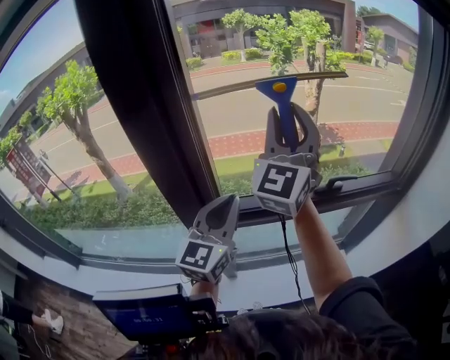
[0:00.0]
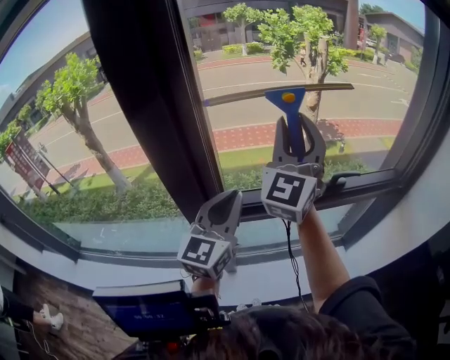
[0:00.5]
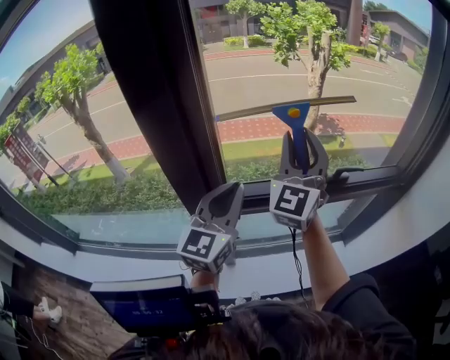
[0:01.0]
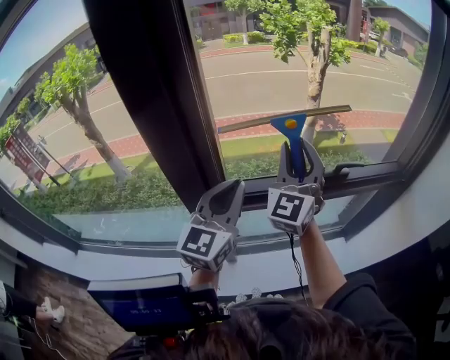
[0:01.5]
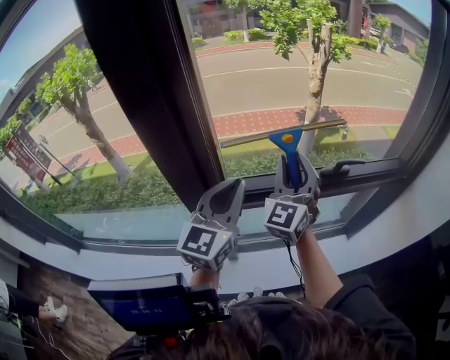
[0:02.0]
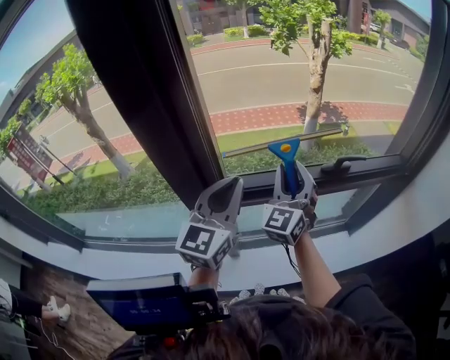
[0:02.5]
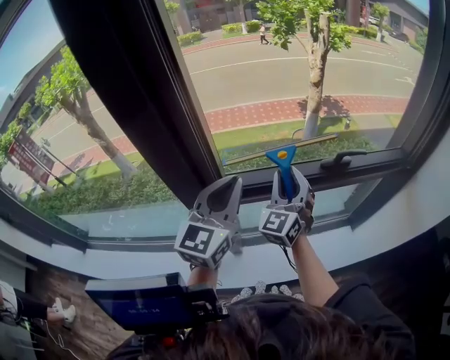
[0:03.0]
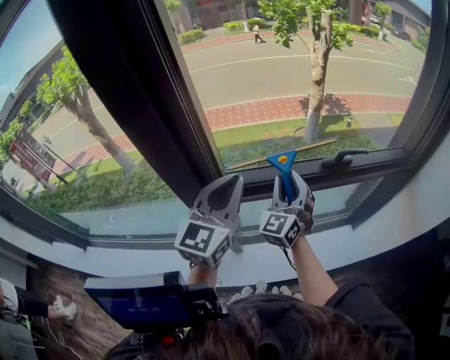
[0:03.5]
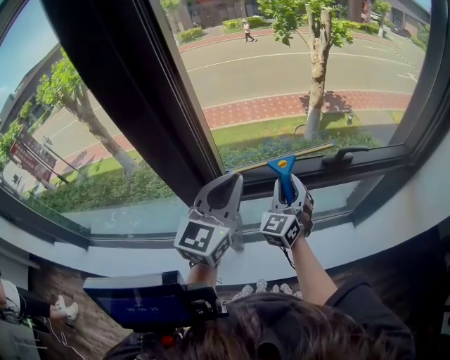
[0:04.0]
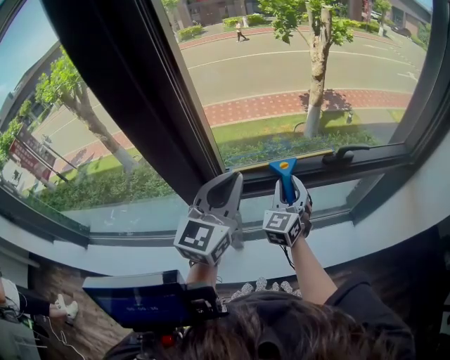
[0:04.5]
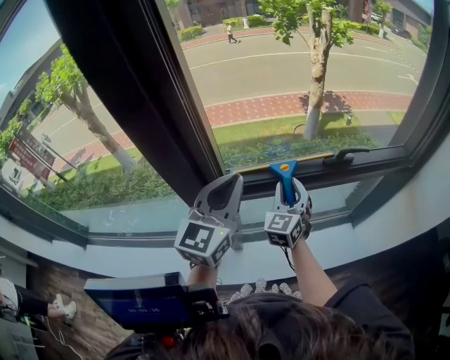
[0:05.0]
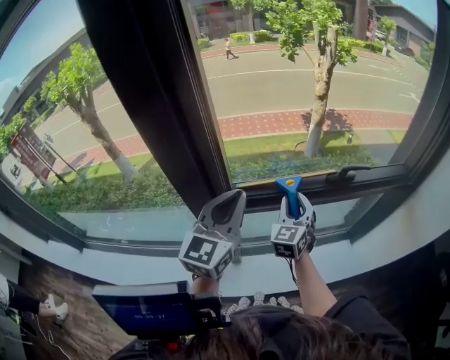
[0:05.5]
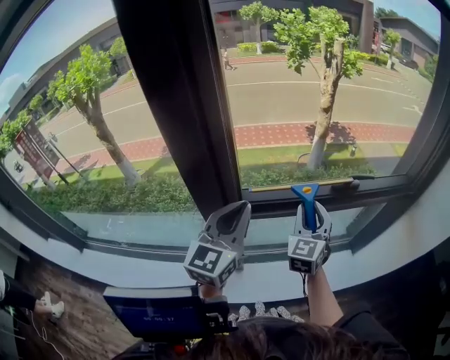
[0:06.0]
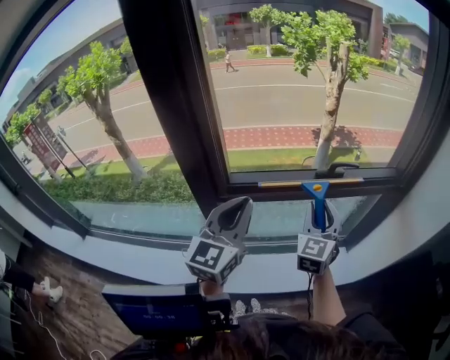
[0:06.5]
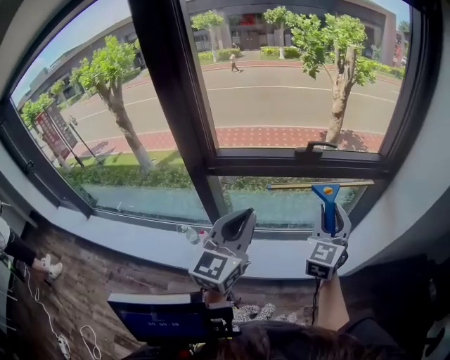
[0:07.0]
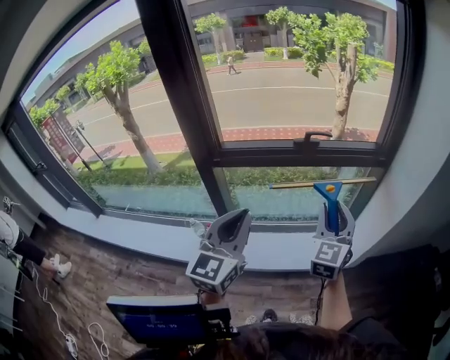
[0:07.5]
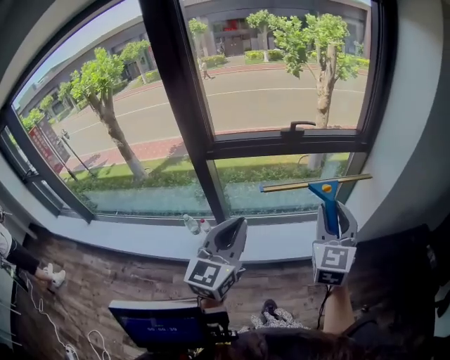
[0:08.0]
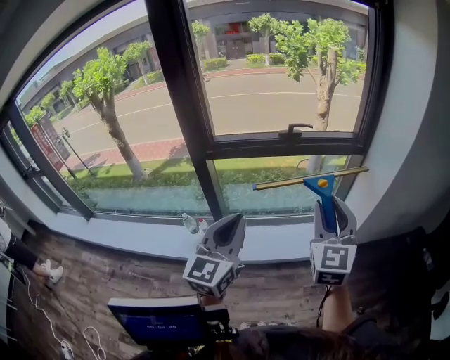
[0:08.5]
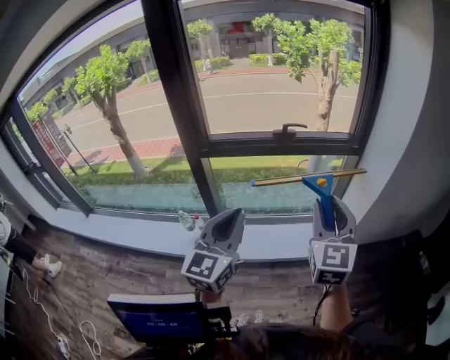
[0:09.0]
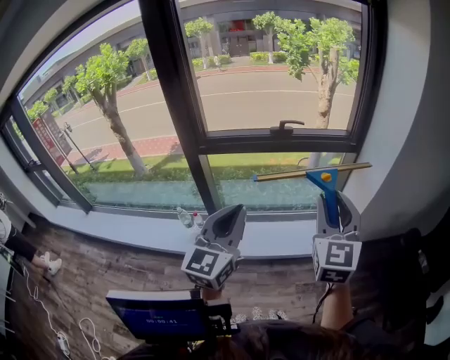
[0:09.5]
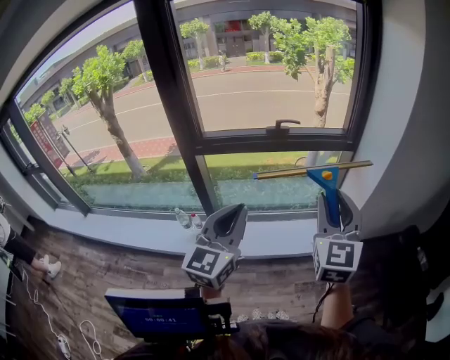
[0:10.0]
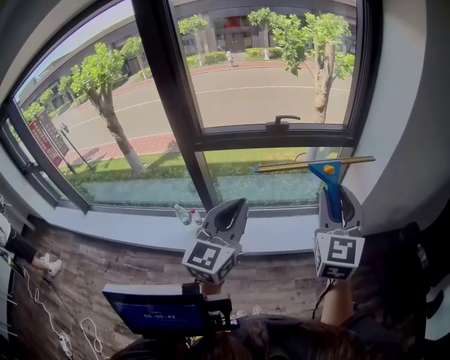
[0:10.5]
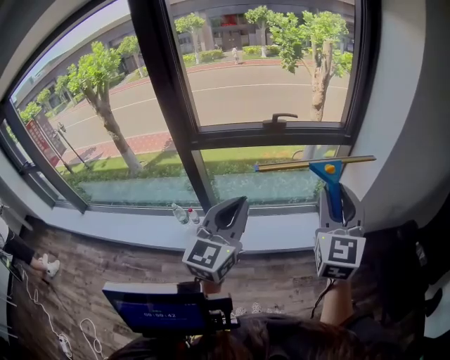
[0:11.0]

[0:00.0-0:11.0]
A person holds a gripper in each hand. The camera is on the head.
0:00.0 to 0:02.0: The right gripper moves downward, roughly 20 cm.
0:02.0 to 0:03.5: The right gripper moves downward, some 10 cm.
0:03.5 to 0:05.5: The right gripper shifts roughly 5 cm downward.
0:05.5 to 0:07.5: The left gripper shifts roughly 35 cm backward and to the right. The right gripper travels to the right, backward and upward by roughly 40 cm.
0:07.5 to 0:09.0: The grippers both shift backward and to the right by roughly 15 cm.
0:09.0 to 0:11.0: The right gripper changes place by approximately 5 cm.

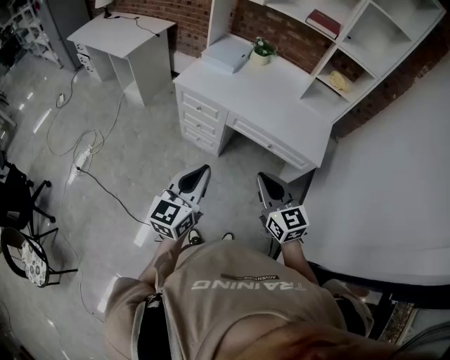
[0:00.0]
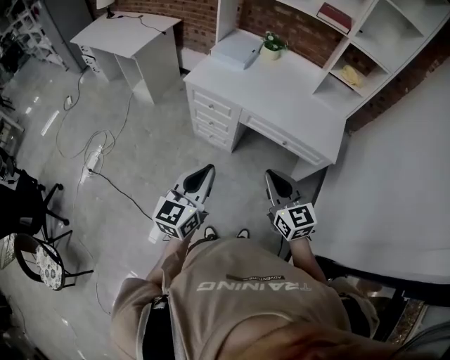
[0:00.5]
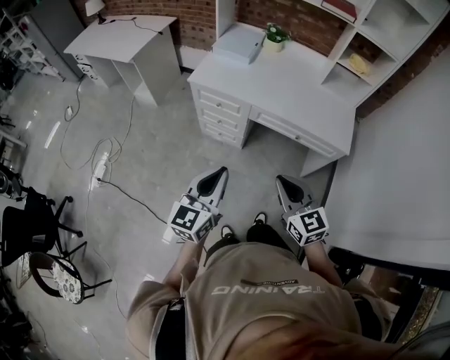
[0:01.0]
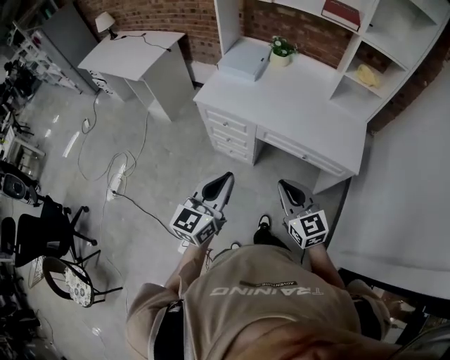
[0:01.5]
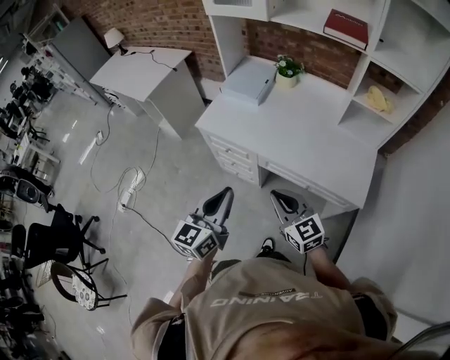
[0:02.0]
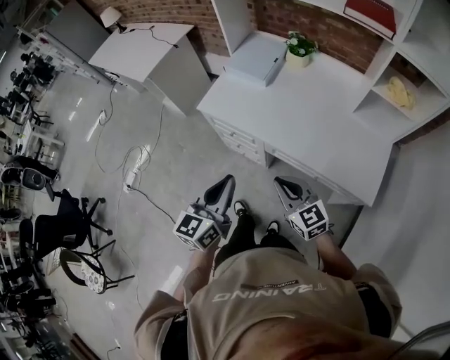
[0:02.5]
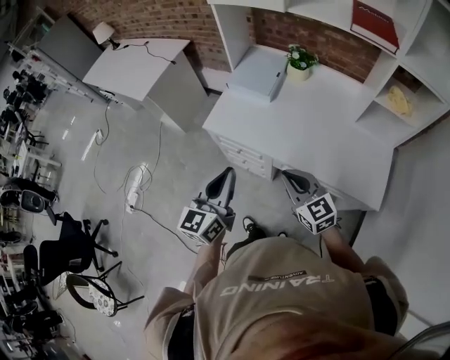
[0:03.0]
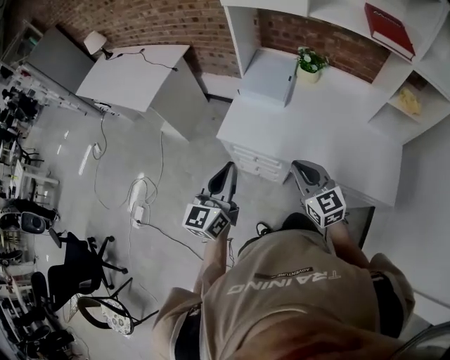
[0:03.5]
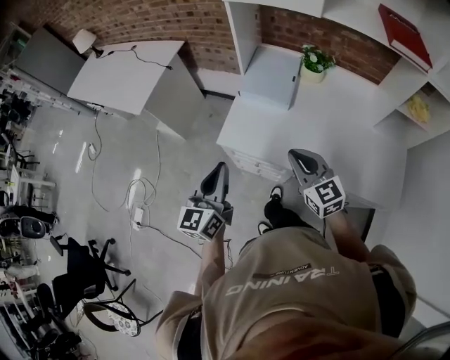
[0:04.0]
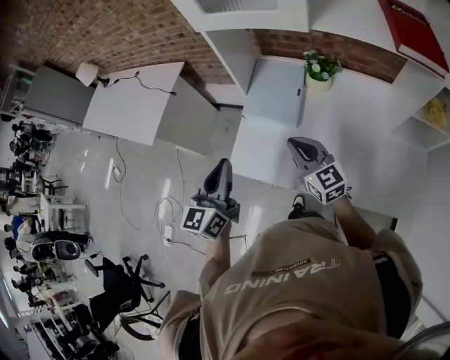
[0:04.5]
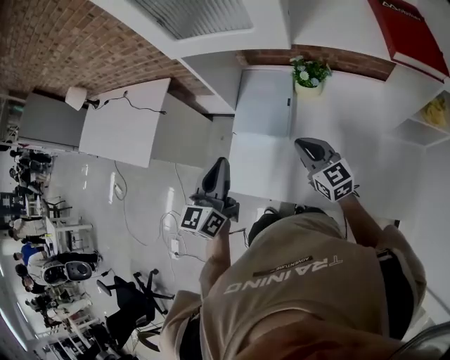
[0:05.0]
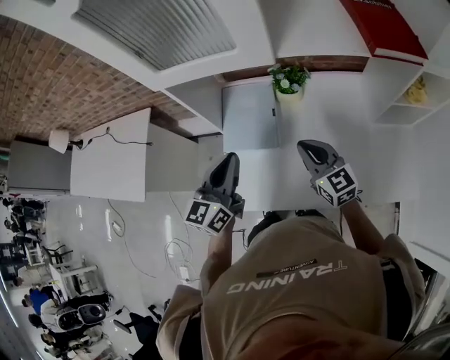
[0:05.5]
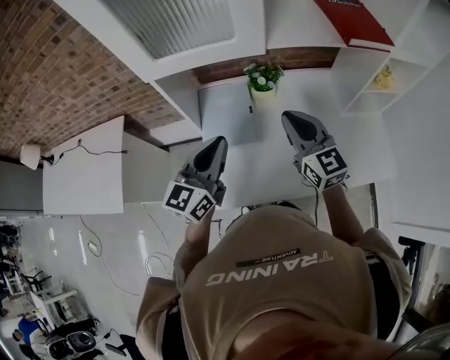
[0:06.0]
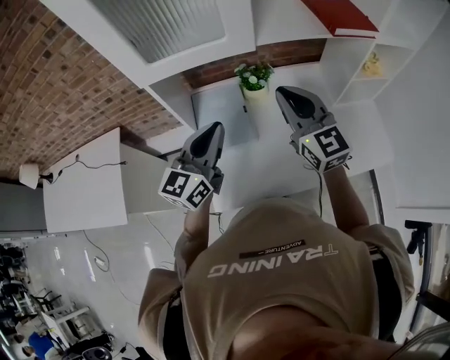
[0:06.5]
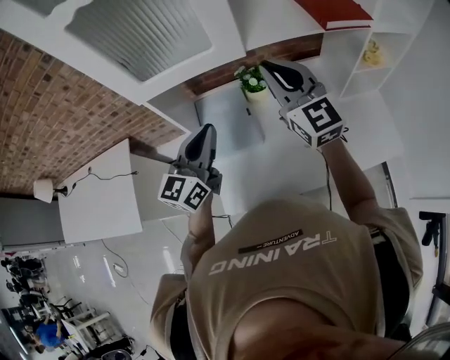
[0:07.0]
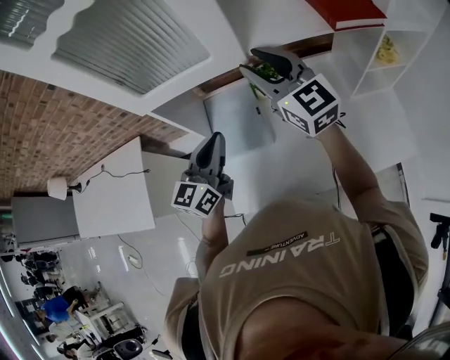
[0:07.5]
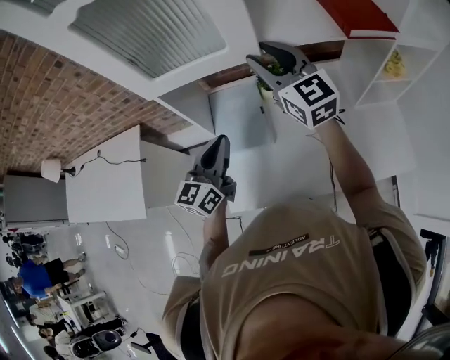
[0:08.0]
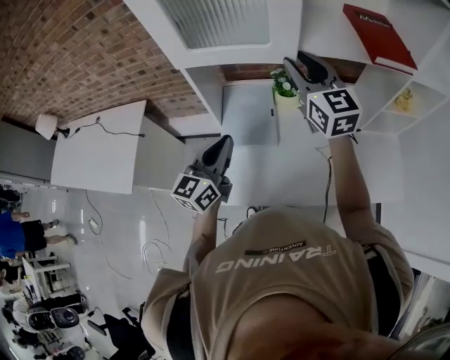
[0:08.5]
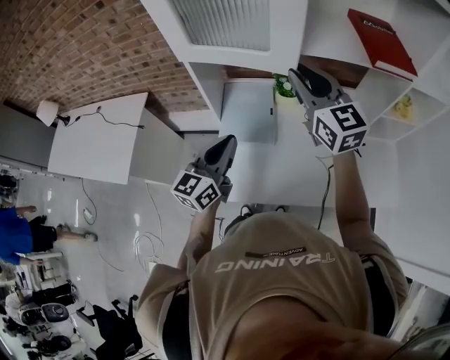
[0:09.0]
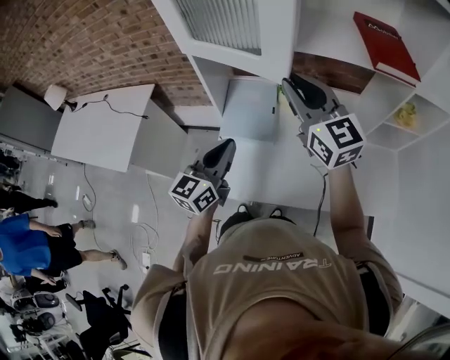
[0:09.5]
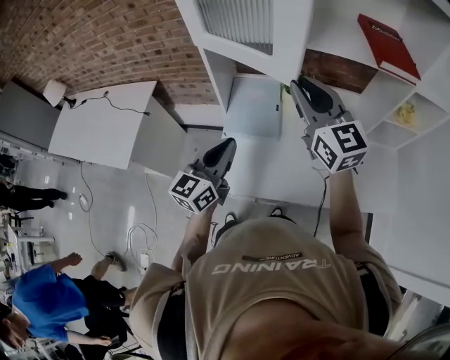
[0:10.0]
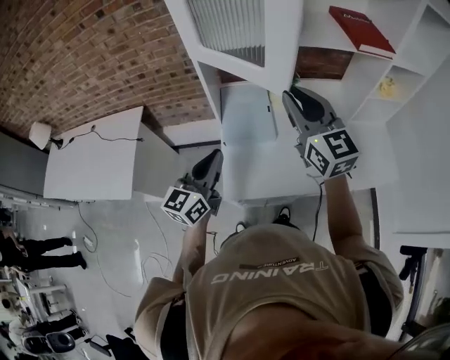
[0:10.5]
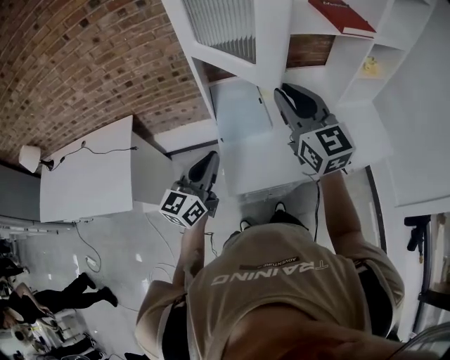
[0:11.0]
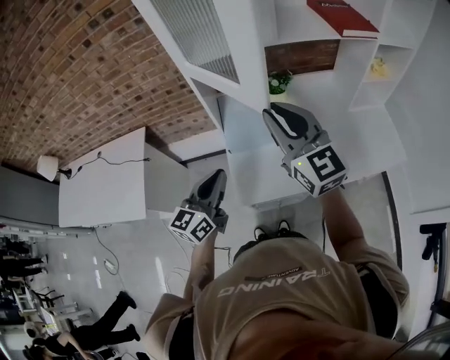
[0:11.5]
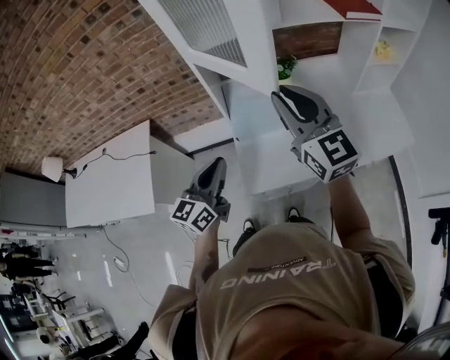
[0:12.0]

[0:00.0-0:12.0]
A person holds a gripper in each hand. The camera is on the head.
0:00.0 to 0:02.0: The grippers both shift forward by roughly 20 cm.
0:02.0 to 0:04.0: The right gripper shifts about 30 cm forward. Meanwhile the left gripper shifts some 35 cm forward and to the left.
0:04.0 to 0:06.0: The right gripper changes place by some 25 cm, and changes its angle by some 30 degrees; the left gripper changes place by roughly 30 cm, and swivels roughly 40 degrees.
0:06.0 to 0:08.0: The right gripper shifts about 15 cm forward and upward, and opens up.
0:08.0 to 0:10.0: The grippers both shift backward by approximately 15 cm.
0:10.0 to 0:12.0: The right gripper moves backward and to the left, some 10 cm; the left gripper is displaced to the left by approximately 10 cm.

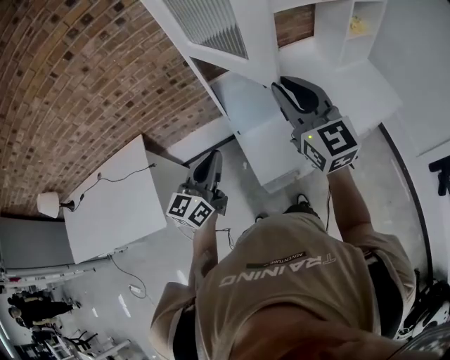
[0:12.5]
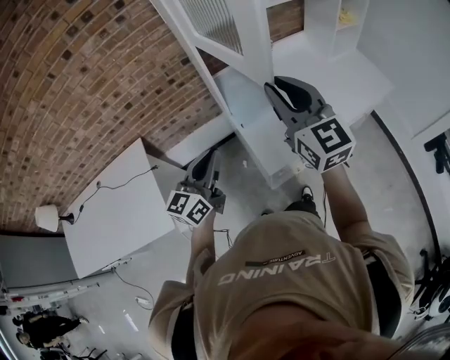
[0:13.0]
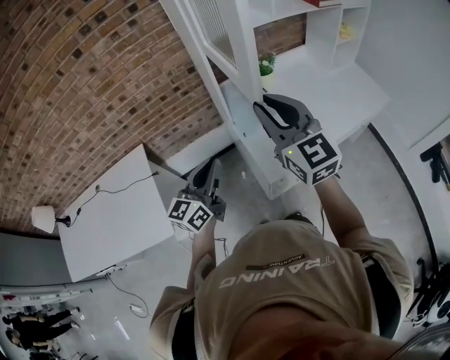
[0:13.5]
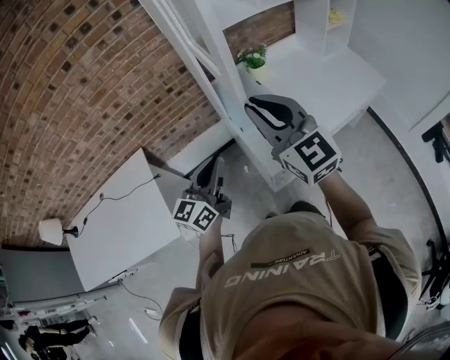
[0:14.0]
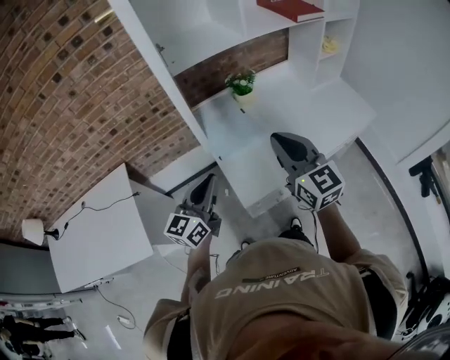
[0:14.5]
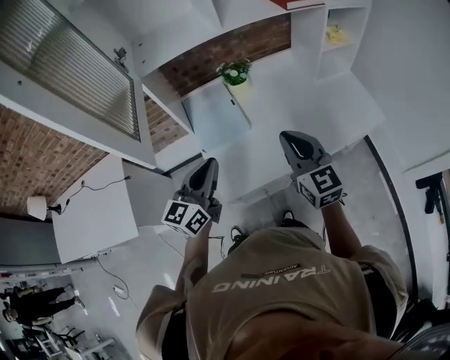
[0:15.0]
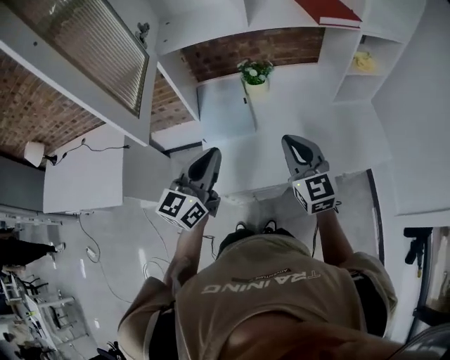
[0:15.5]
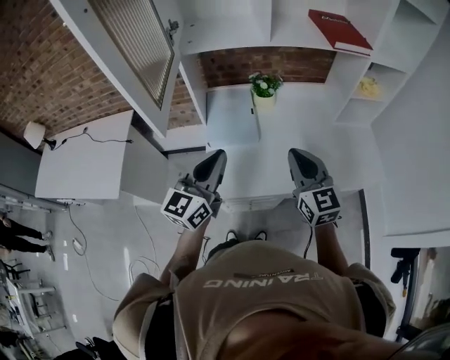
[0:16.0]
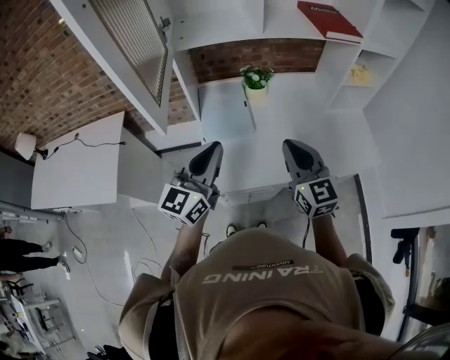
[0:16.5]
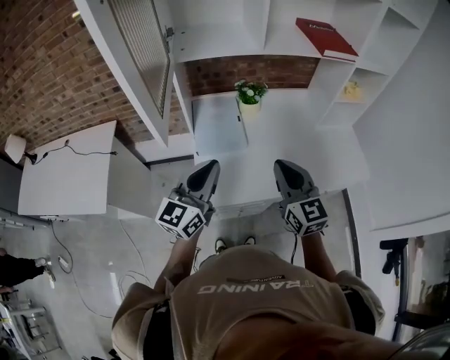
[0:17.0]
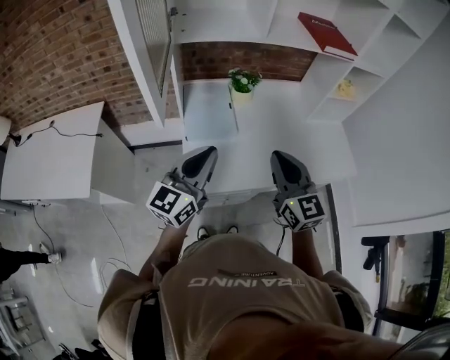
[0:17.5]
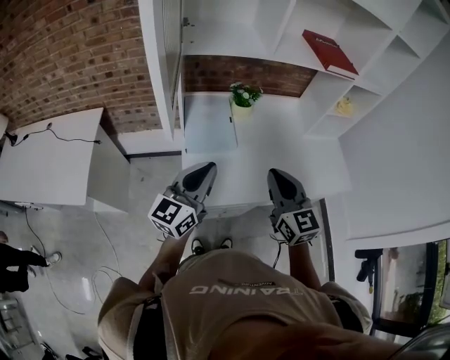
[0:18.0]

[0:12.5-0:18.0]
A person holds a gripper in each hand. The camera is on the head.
0:12.5 to 0:14.5: The right gripper moves downward, about 5 cm, and moves about 10 cm to the left and comes back. Meanwhile the left gripper reaches about 5 cm to the left, then returns.
0:14.5 to 0:16.0: The two grippers go about 15 cm to the right.
0:16.0 to 0:18.0: The right gripper shifts roughly 5 cm to the left.
